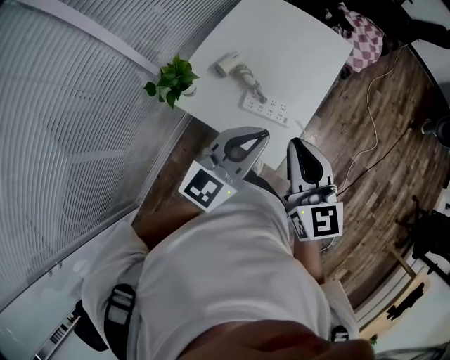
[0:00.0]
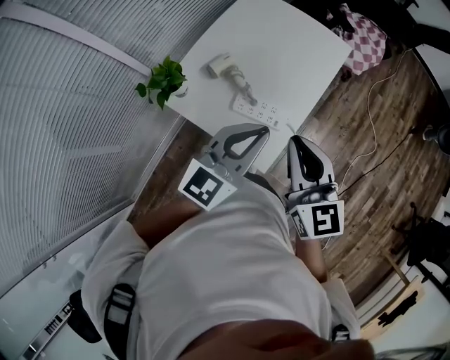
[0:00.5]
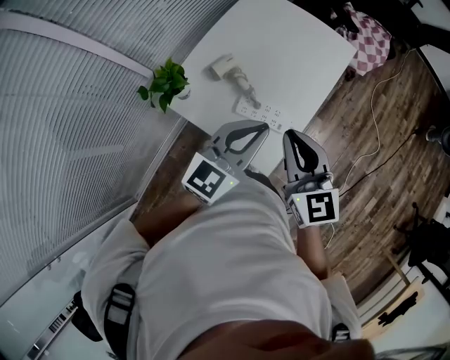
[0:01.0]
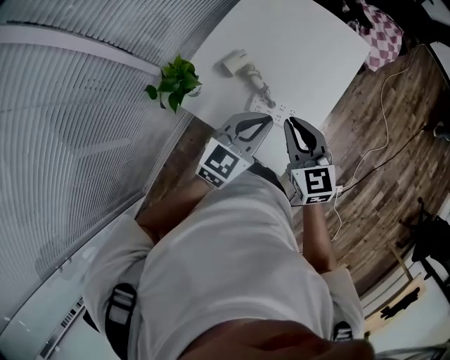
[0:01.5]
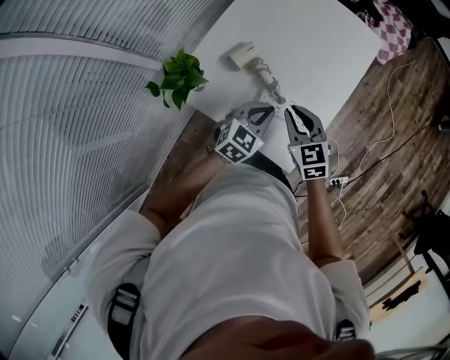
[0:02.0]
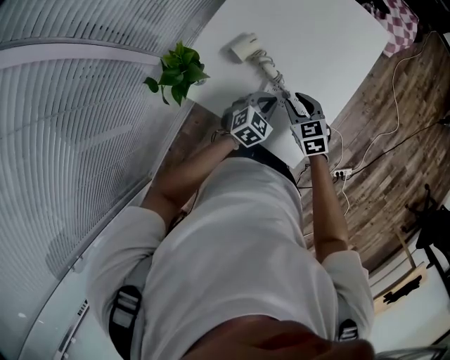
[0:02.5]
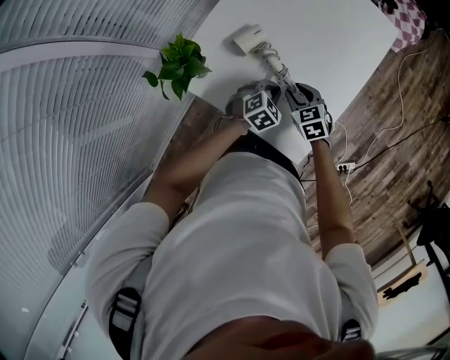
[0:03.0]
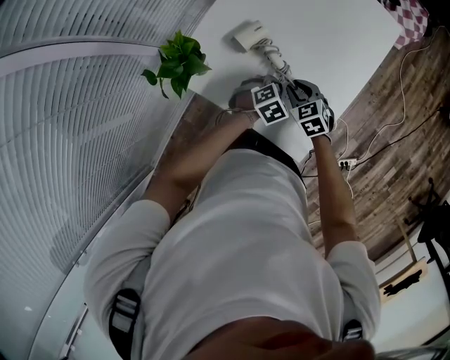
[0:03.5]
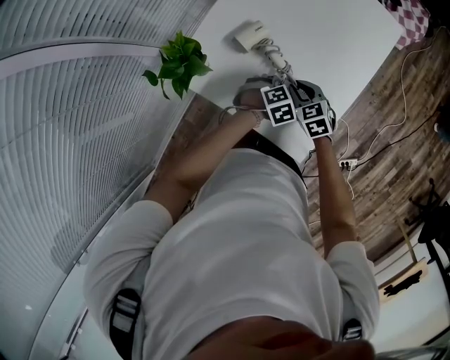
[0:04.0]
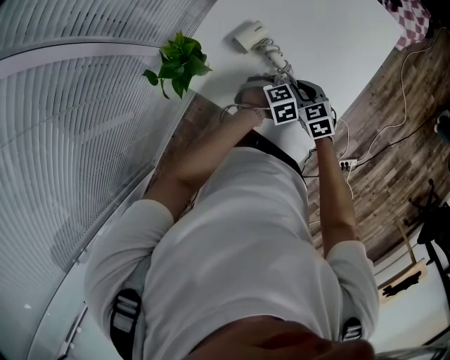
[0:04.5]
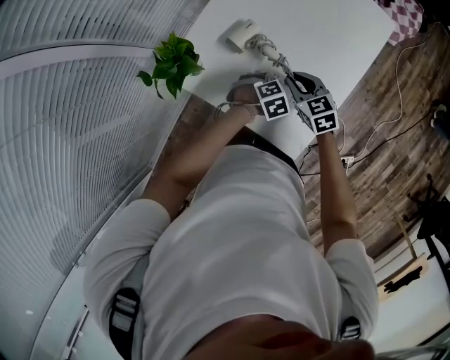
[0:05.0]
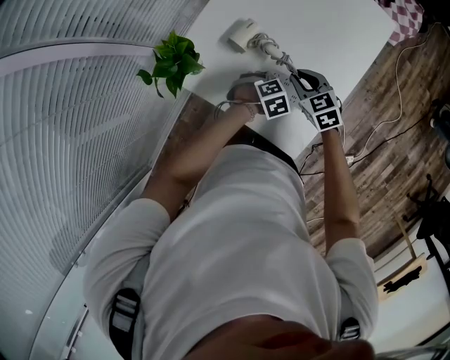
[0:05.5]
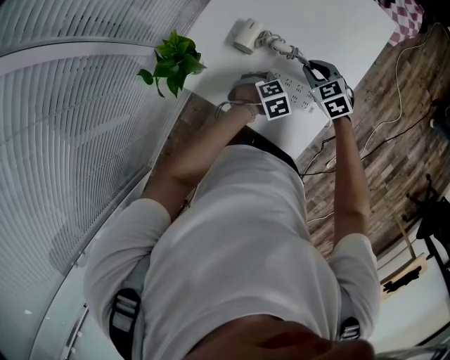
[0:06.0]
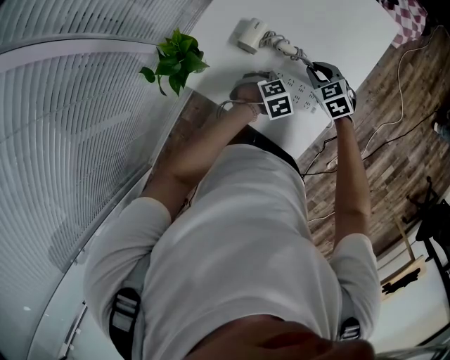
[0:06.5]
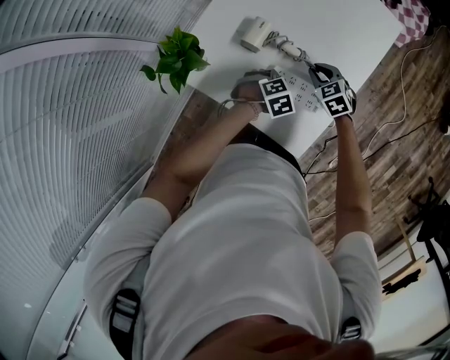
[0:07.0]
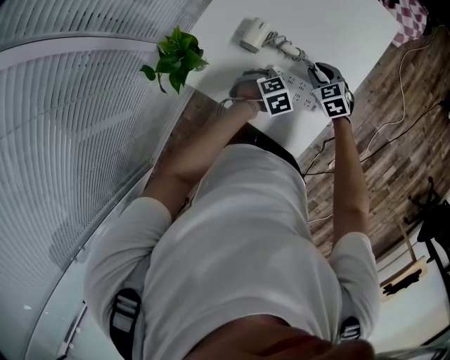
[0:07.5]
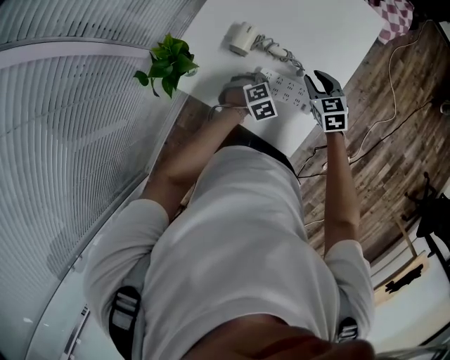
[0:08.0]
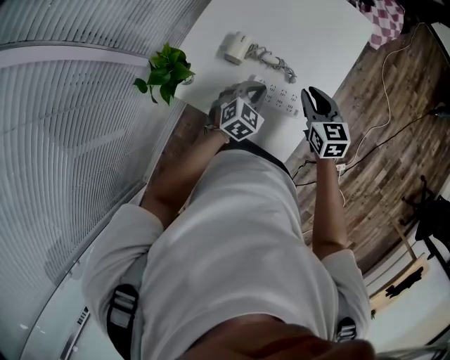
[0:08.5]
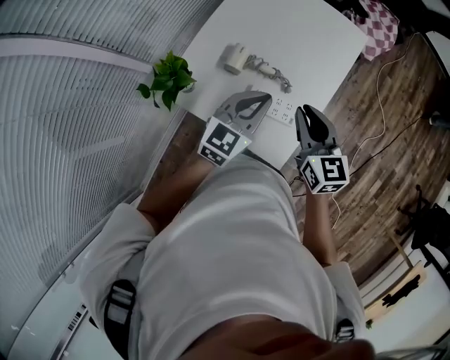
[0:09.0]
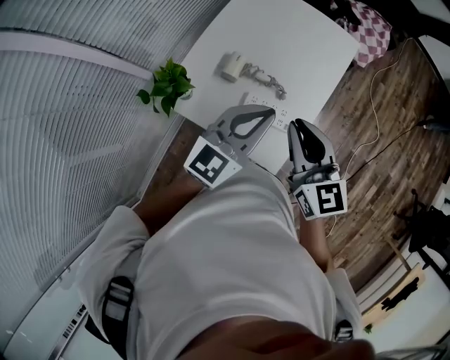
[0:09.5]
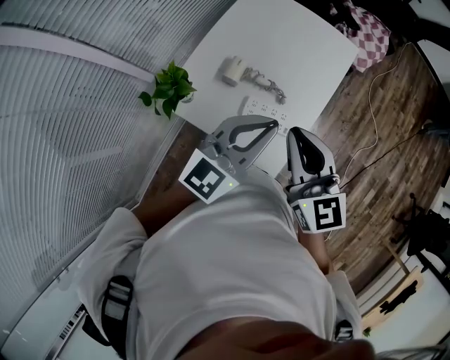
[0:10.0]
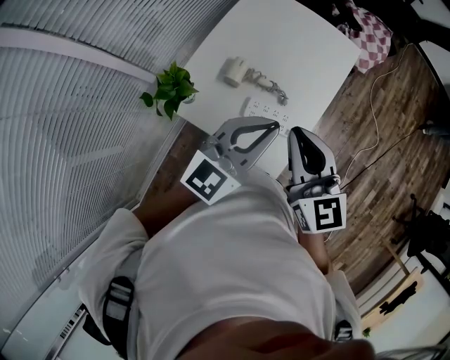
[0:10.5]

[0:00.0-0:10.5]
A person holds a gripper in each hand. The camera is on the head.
0:00.0 to 0:02.0: Both grippers move downward and forward, some 30 cm. The left gripper tips its fingers downward by approximately 30 degrees. Meanwhile the right gripper swivels about 30 degrees.
0:02.0 to 0:04.0: The two grippers go roughly 15 cm downward. The left gripper tilts its fingers roughly 40 degrees downward.
0:04.0 to 0:06.5: The right gripper ends up about 10 cm from where it was.
0:06.5 to 0:08.5: Both grippers travel together upward, about 10 cm. The right gripper swivels approximately 30 degrees, while the left gripper changes its angle by some 30 degrees.
0:08.5 to 0:10.5: Both grippers travel together upward, about 30 cm. The right gripper swivels roughly 20 degrees. The left gripper angles its fingers upward, by about 40 degrees.

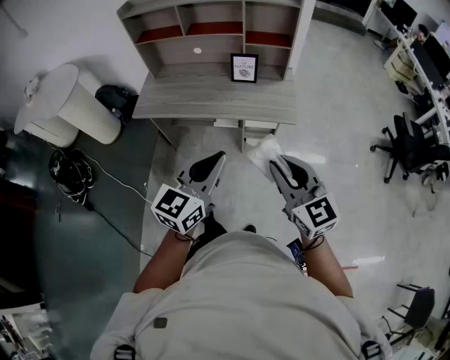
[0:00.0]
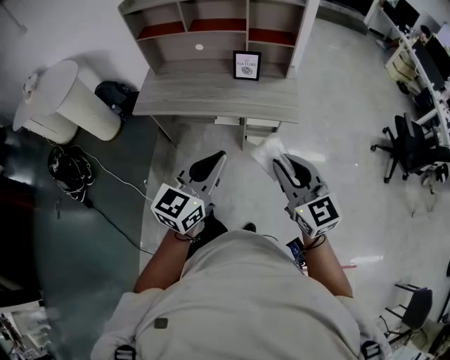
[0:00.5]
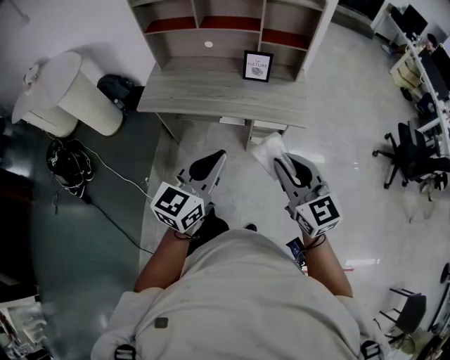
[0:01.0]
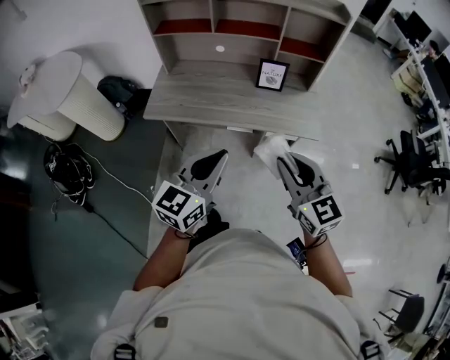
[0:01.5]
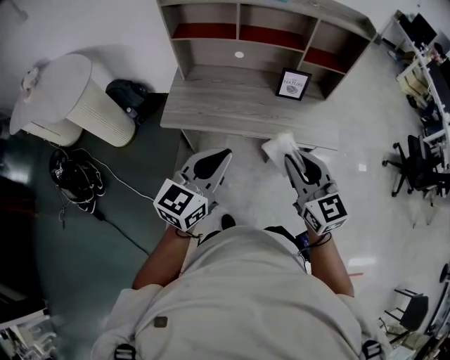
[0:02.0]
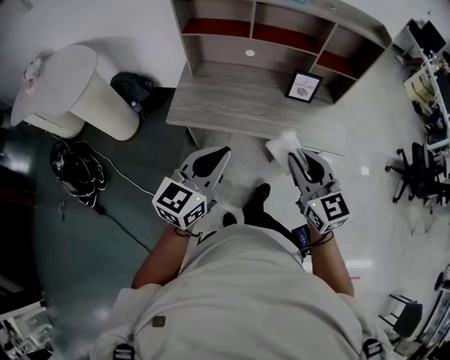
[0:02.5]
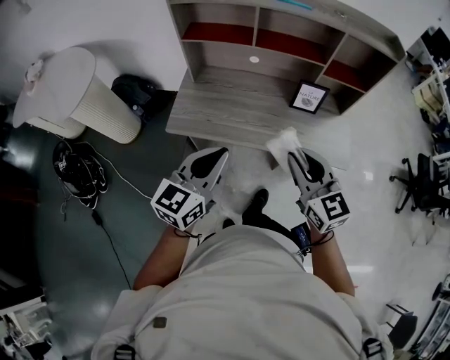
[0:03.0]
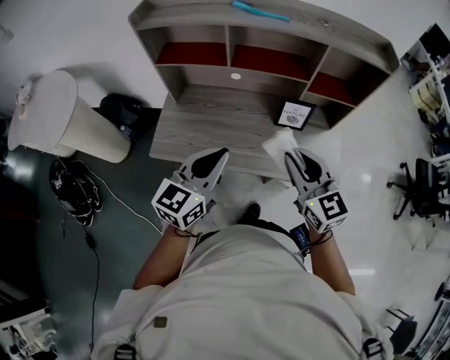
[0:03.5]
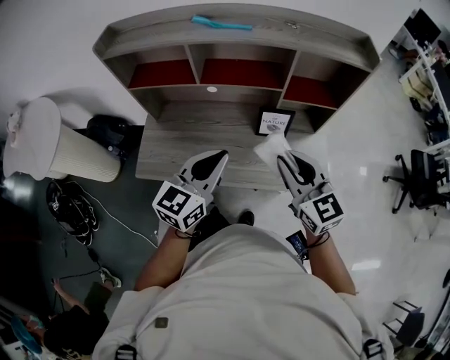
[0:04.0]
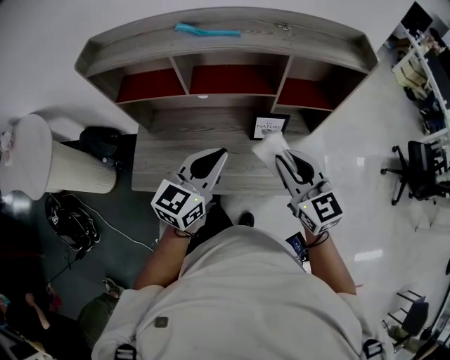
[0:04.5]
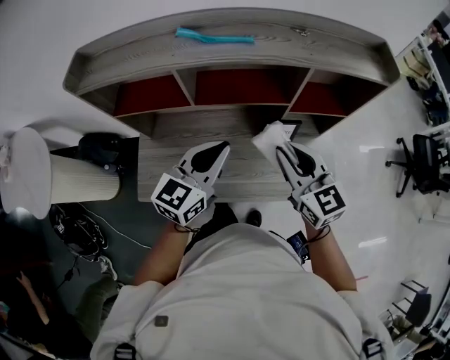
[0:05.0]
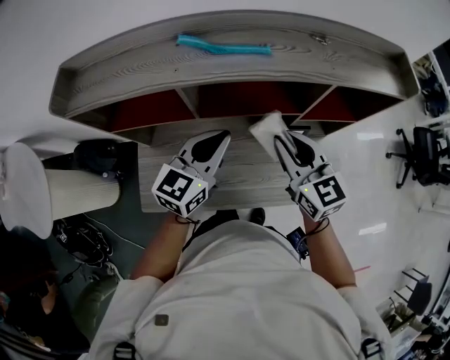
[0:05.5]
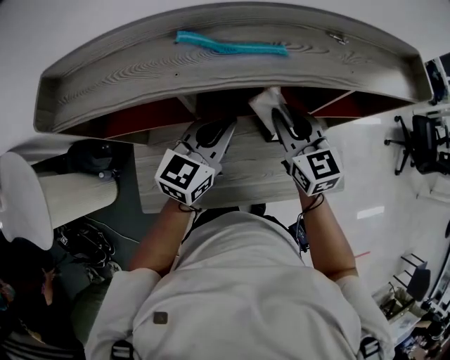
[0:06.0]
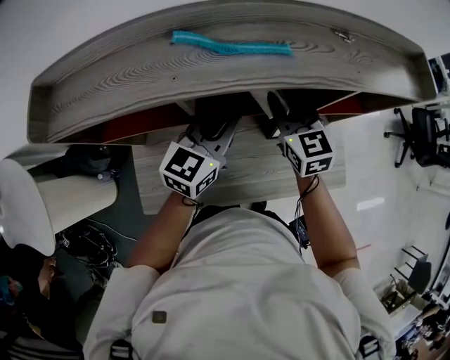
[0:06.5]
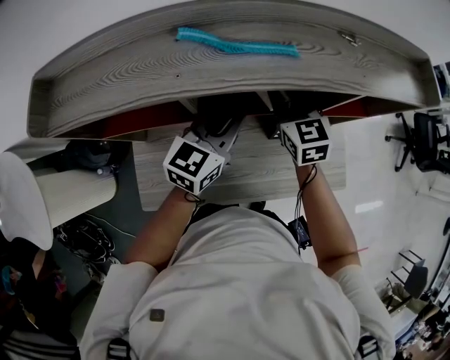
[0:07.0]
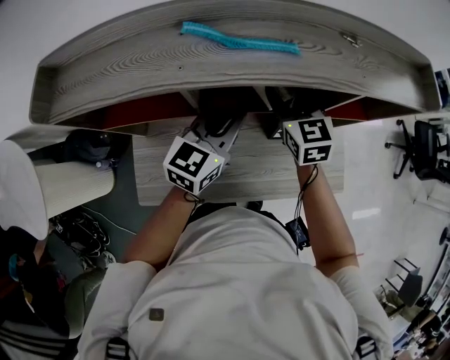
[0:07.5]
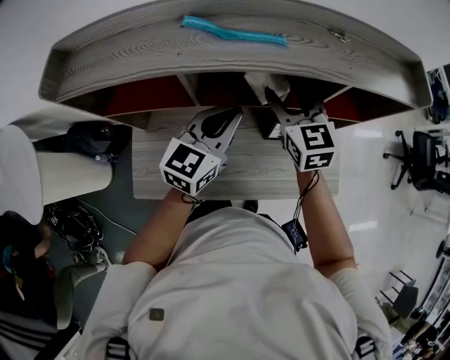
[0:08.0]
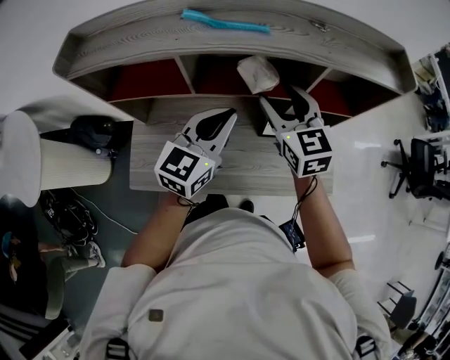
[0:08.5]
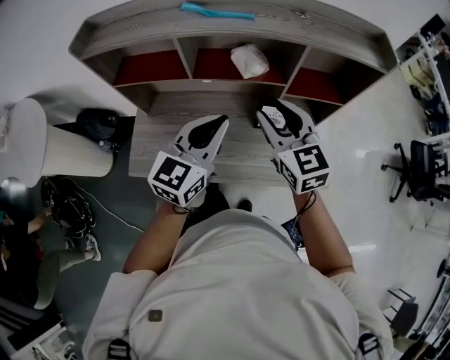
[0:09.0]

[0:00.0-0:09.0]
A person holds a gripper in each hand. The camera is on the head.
0:00.0 to 0:02.0: The two grippers go some 30 cm to the left and forward.
0:02.0 to 0:04.5: Both grippers travel together forward, some 35 cm.
0:04.5 to 0:07.0: The left gripper heads forward, covering about 25 cm. The right gripper shifts about 35 cm forward and to the left.
0:07.0 to 0:09.0: Both grippers move backward and upward, about 20 cm.

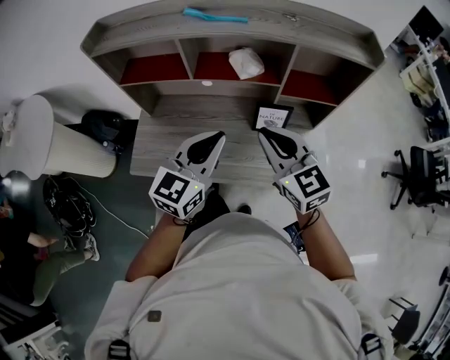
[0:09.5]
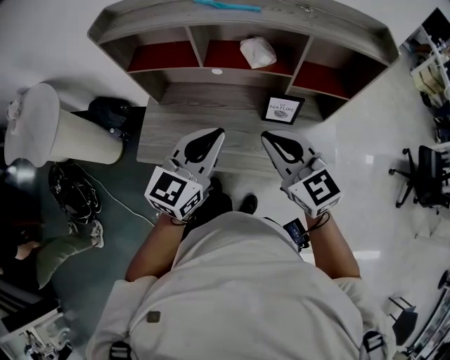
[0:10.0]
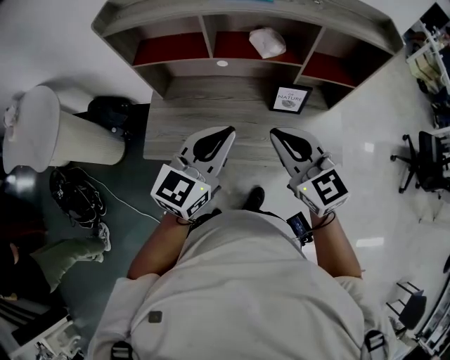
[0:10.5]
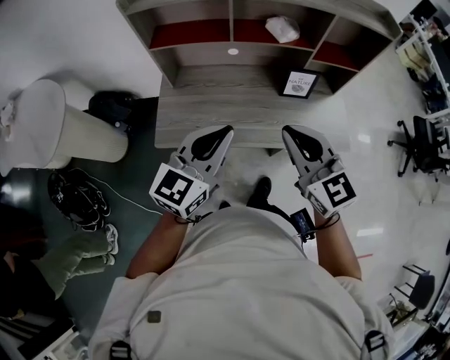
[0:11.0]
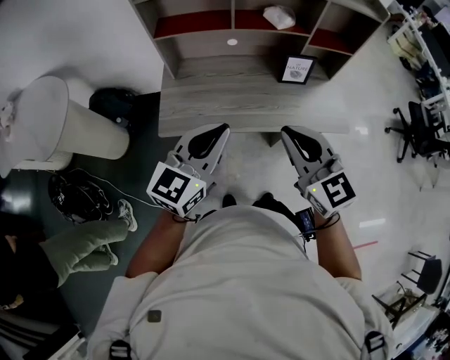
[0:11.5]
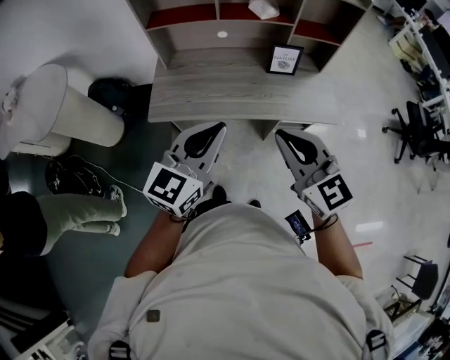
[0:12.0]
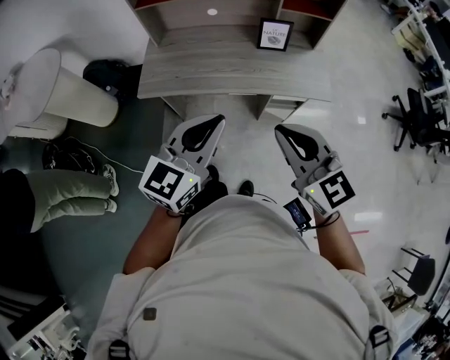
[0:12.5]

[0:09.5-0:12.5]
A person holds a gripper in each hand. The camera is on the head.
0:09.5 to 0:11.0: The right gripper moves backward and to the left, approximately 20 cm, while the left gripper goes some 20 cm to the left and backward.
0:11.0 to 0:12.5: The grippers both shift backward and to the right by approximately 25 cm.

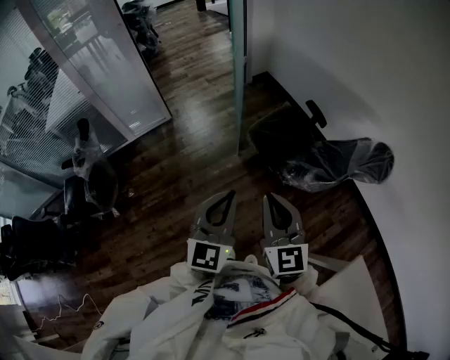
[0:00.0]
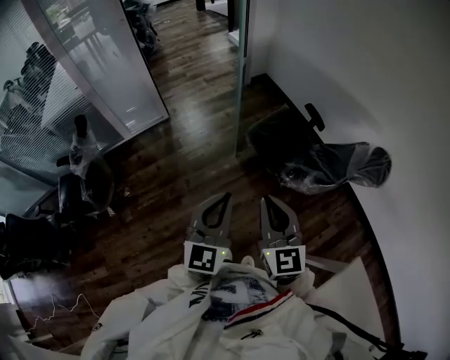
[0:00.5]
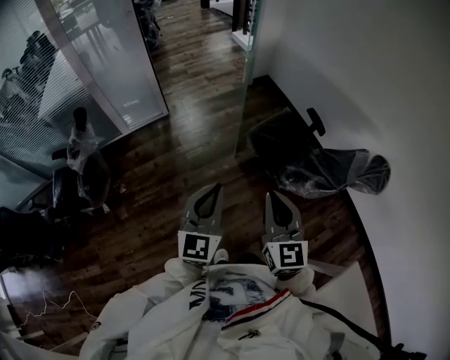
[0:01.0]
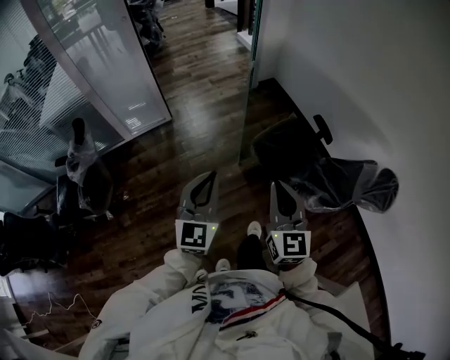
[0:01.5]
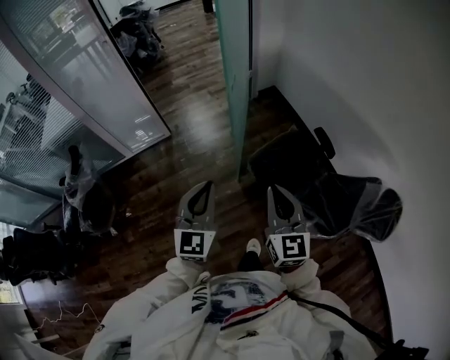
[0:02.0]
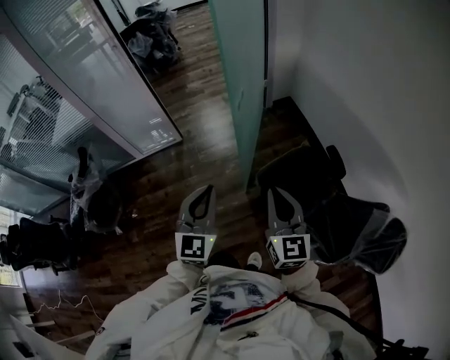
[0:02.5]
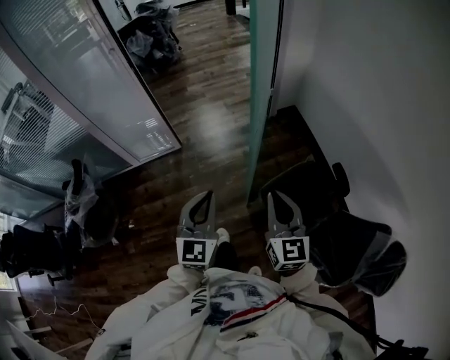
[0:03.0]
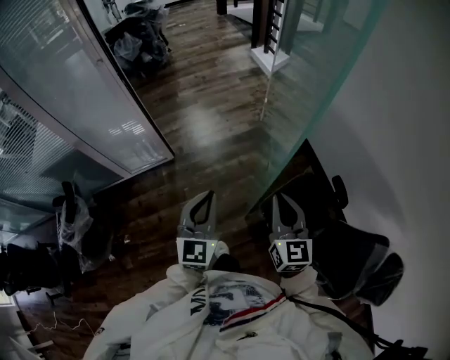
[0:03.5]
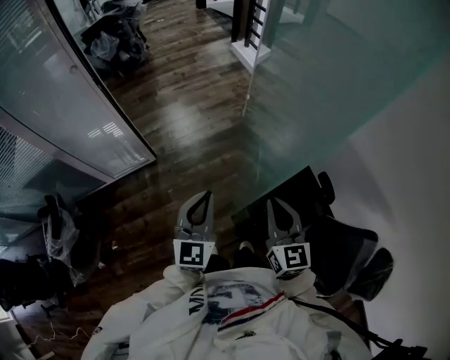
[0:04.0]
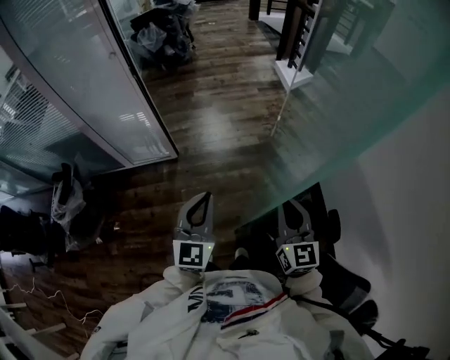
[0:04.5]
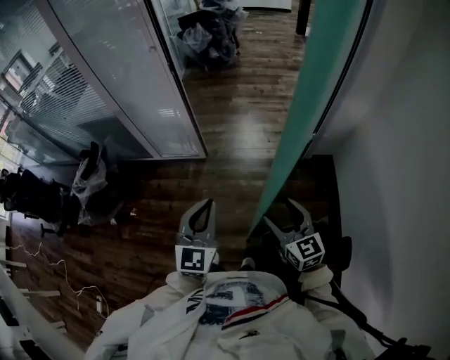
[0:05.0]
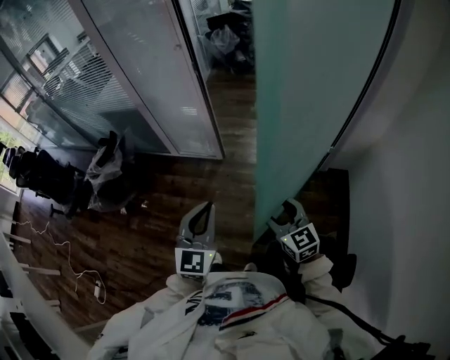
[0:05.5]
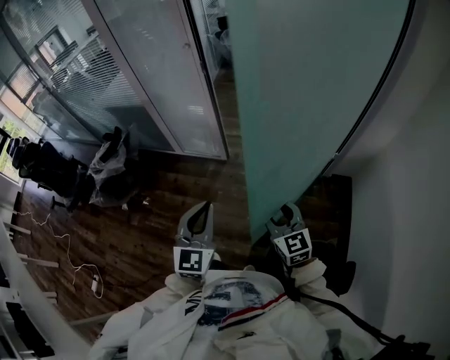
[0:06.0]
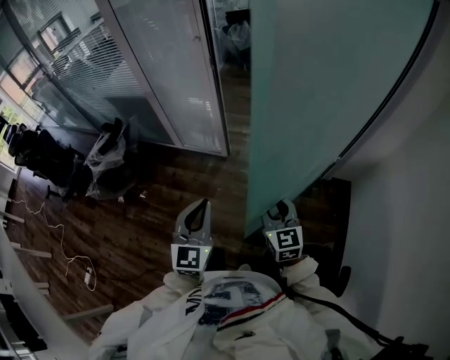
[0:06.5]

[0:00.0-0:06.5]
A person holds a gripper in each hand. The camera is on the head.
0:00.0 to 0:02.0: Both grippers travel together forward, roughly 25 cm.
0:02.0 to 0:04.5: Both grippers travel together forward, approximately 35 cm.
0:04.5 to 0:06.5: The left gripper moves some 10 cm, and changes its angle by about 30 degrees. Meanwhile the right gripper ends up some 20 cm from where it was, changes its angle by about 30 degrees, and opens its fingers.
